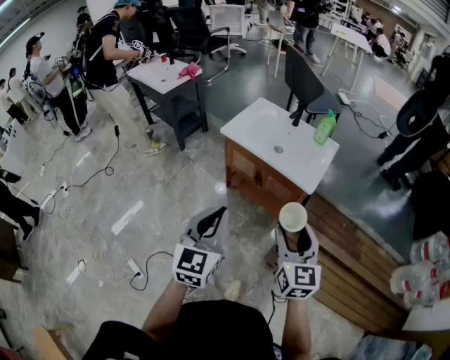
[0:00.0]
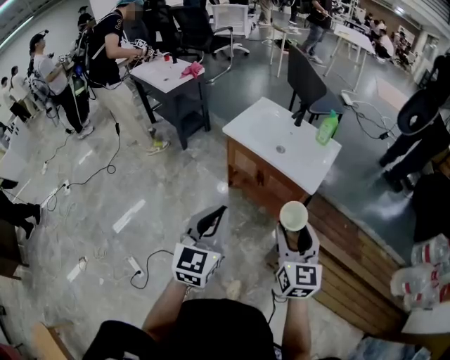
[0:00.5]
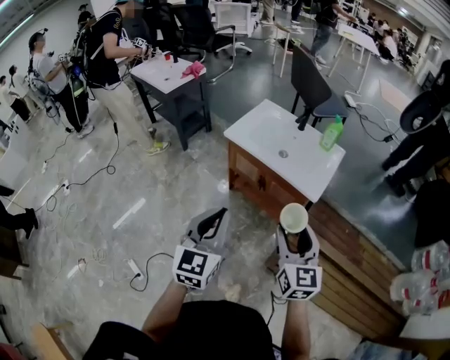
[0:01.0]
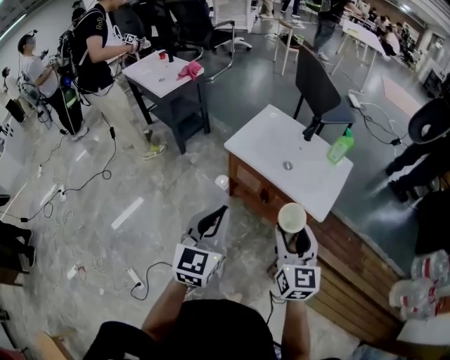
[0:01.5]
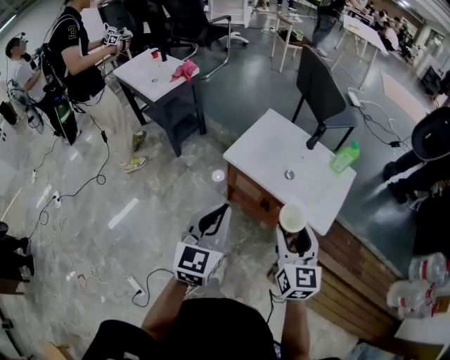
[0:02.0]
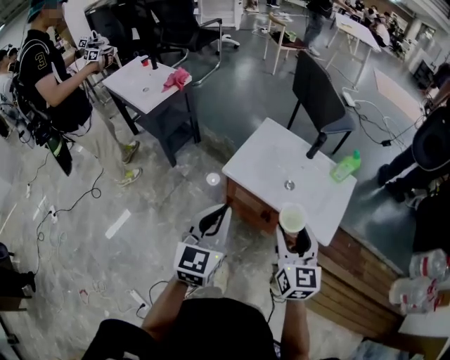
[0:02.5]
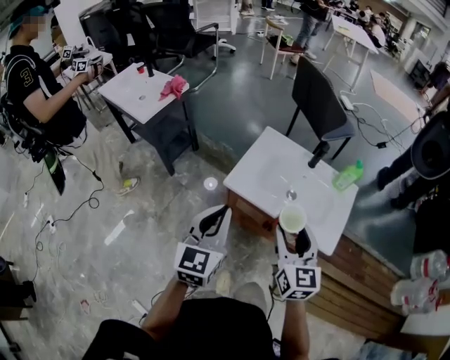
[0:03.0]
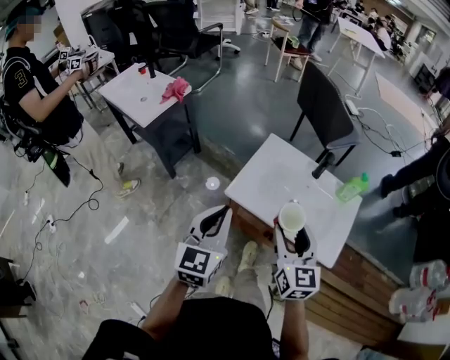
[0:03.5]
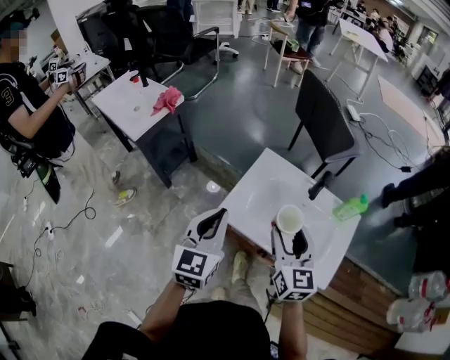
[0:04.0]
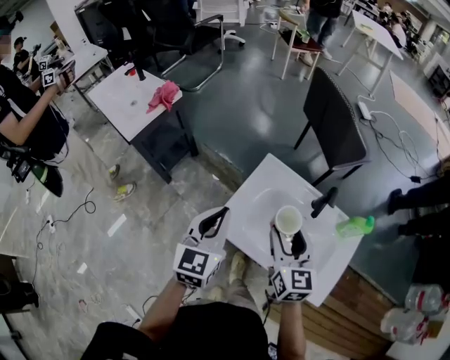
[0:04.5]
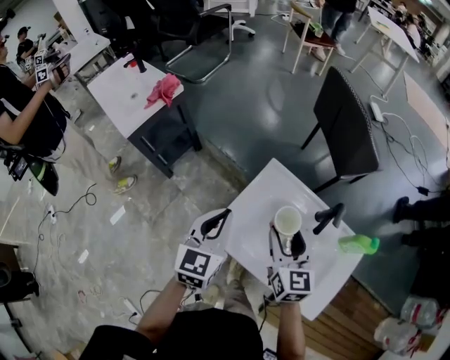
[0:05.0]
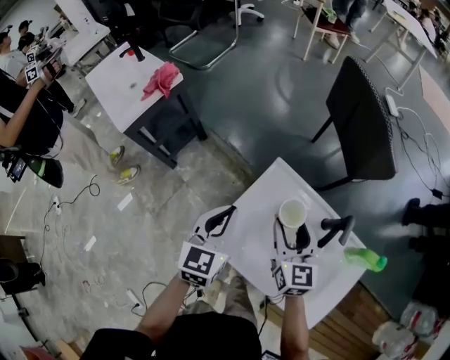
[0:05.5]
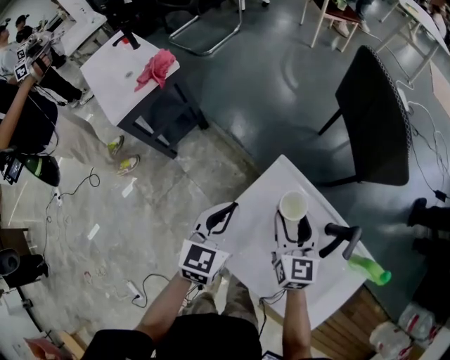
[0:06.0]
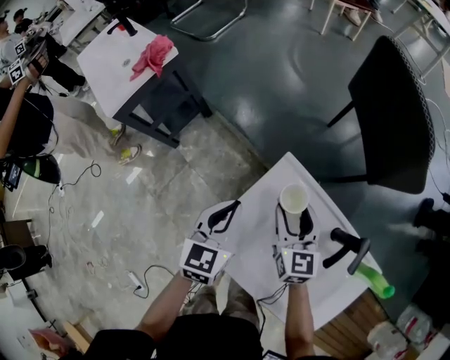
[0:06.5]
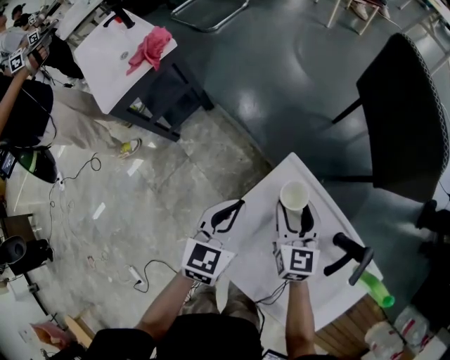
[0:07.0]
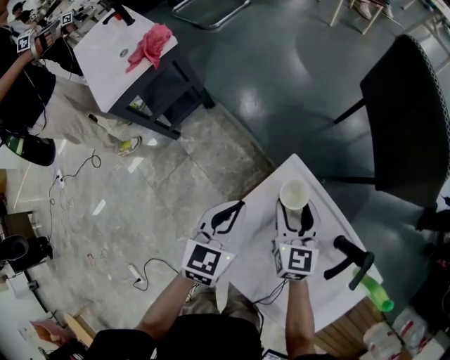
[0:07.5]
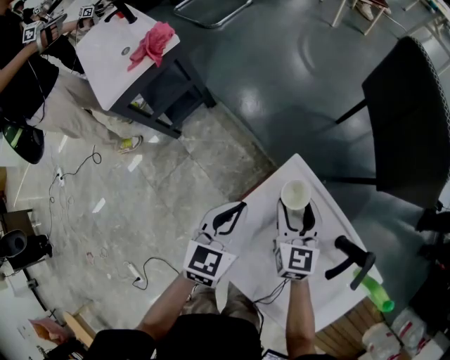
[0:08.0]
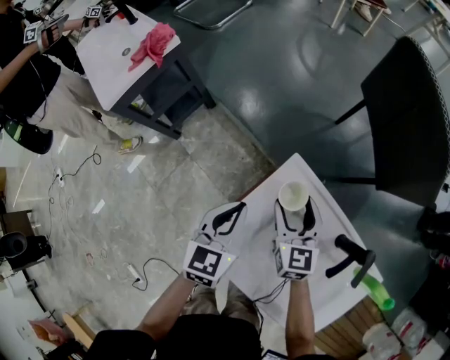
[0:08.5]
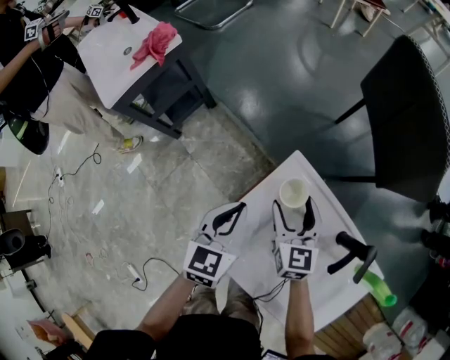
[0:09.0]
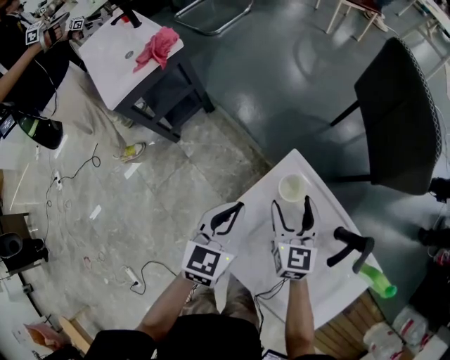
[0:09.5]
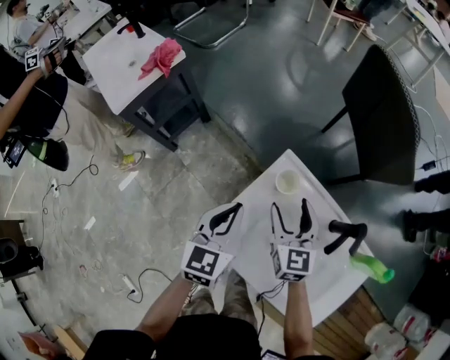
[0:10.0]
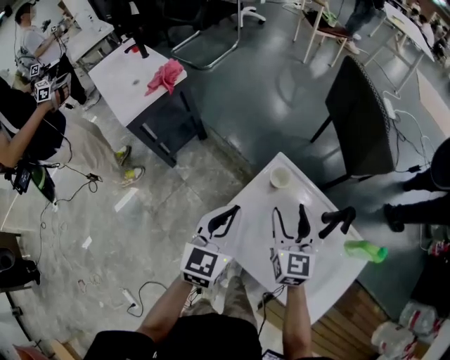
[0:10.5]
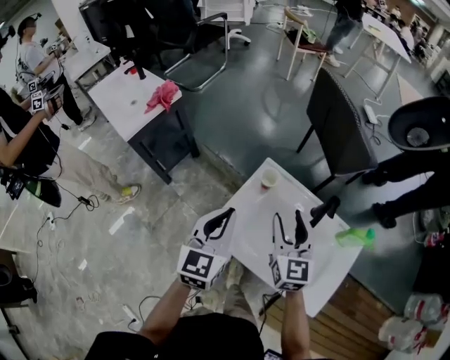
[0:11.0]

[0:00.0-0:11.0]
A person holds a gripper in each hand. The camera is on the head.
0:00.0 to 0:02.0: The two grippers go roughly 25 cm forward.
0:02.0 to 0:03.5: Both grippers travel together forward and to the left, some 20 cm.
0:03.5 to 0:05.5: The left gripper heads forward and downward, covering approximately 35 cm, while the right gripper moves forward, some 30 cm.
0:05.5 to 0:07.5: The grippers both shift downward and forward by about 15 cm.
0:07.5 to 0:09.0: There are only small adjustments of the grippers.
0:09.0 to 0:11.0: The grippers both shift upward and backward by roughly 25 cm.

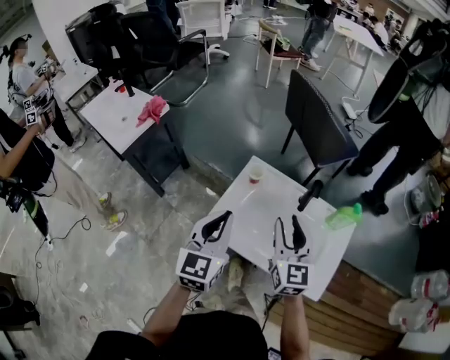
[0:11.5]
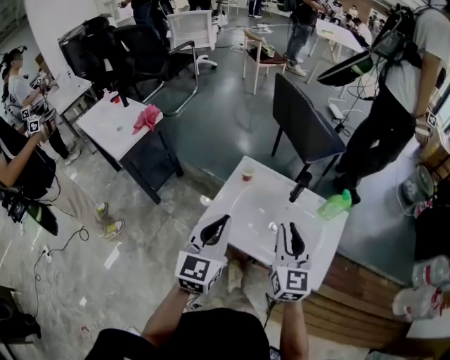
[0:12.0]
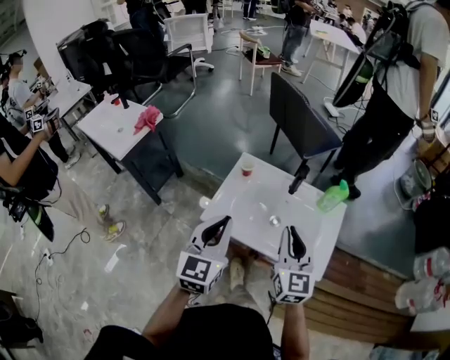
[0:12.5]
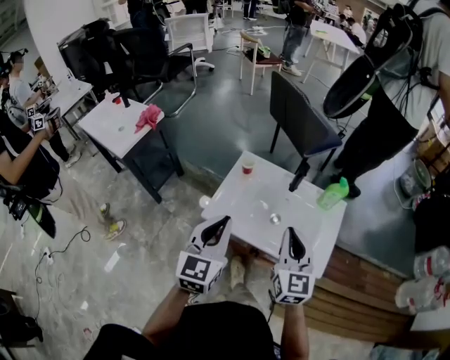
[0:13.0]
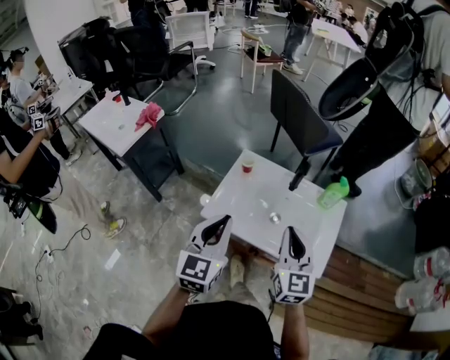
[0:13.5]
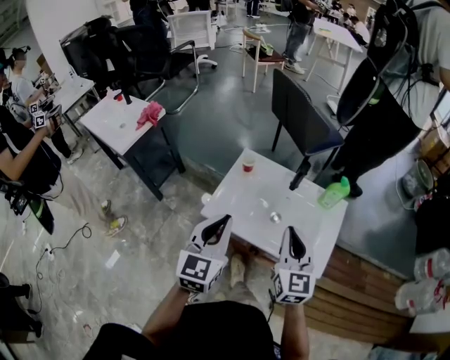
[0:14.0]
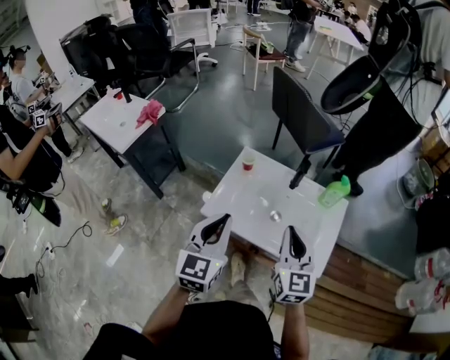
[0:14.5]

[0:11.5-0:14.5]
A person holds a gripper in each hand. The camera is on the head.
0:11.5 to 0:13.0: The grippers both shift backward by approximately 10 cm. The right gripper closes up.
0:13.0 to 0:14.5: Neither gripper changes place.

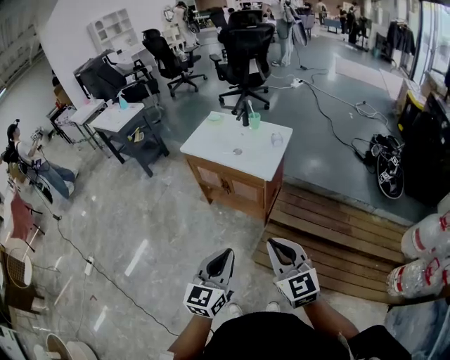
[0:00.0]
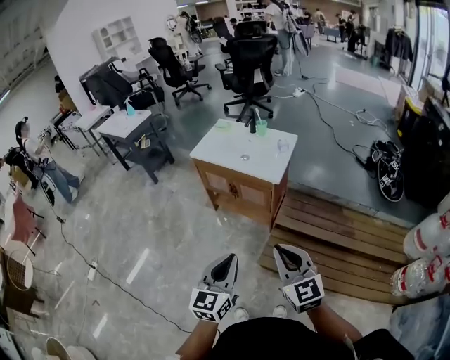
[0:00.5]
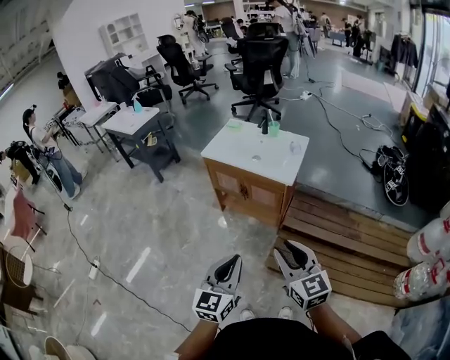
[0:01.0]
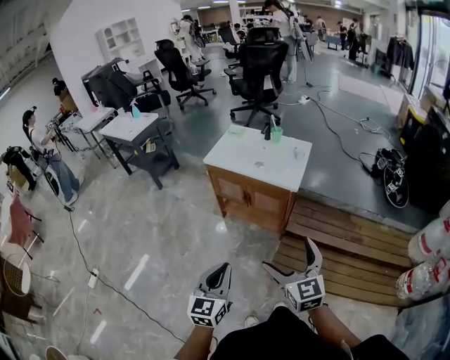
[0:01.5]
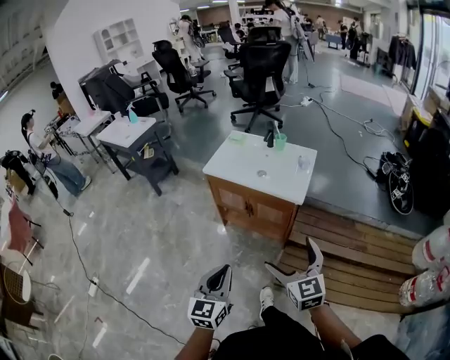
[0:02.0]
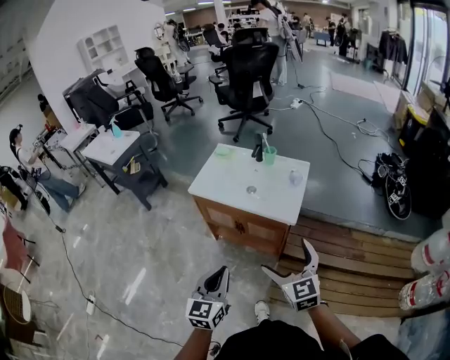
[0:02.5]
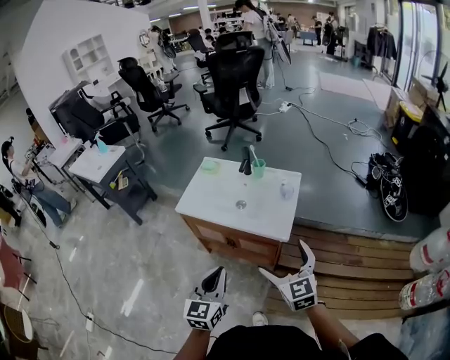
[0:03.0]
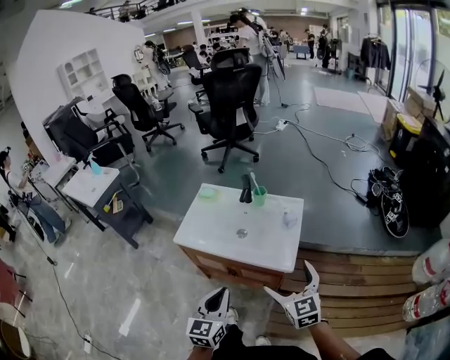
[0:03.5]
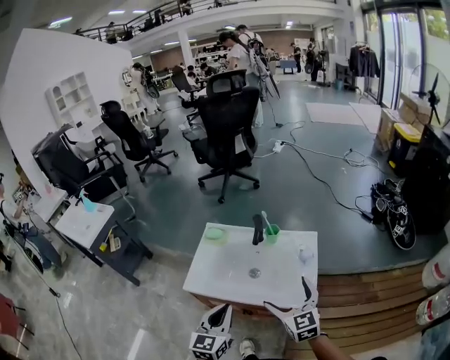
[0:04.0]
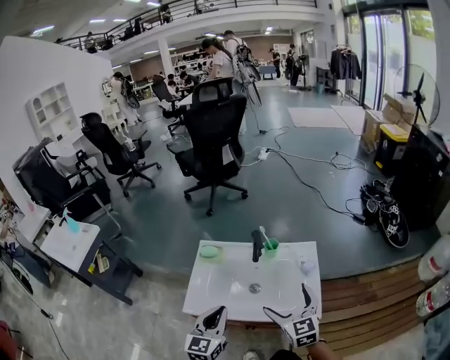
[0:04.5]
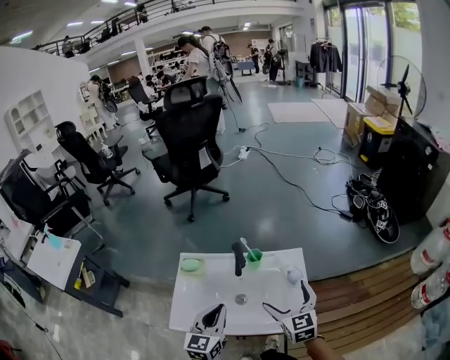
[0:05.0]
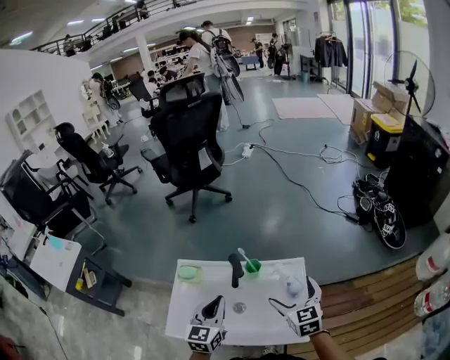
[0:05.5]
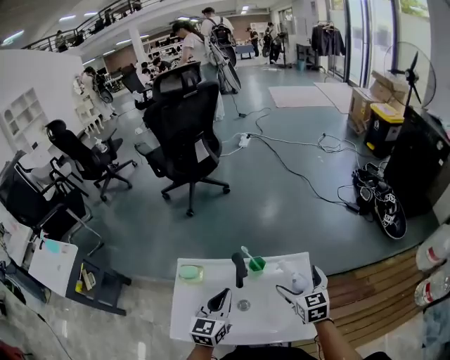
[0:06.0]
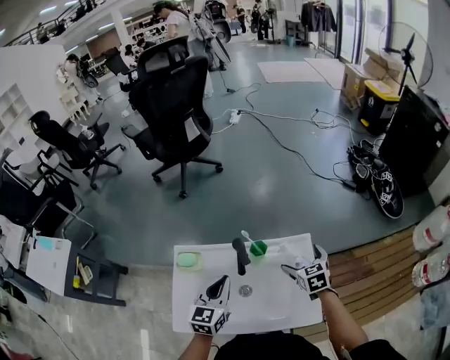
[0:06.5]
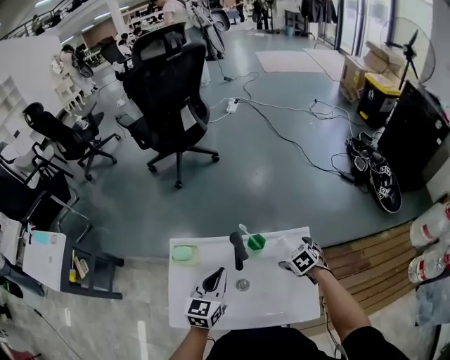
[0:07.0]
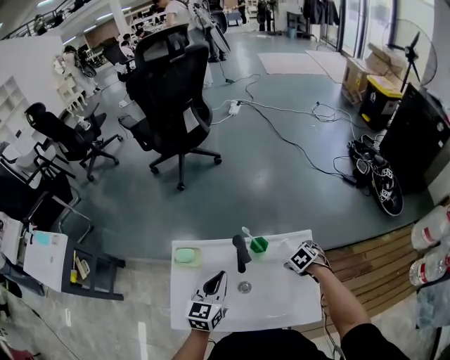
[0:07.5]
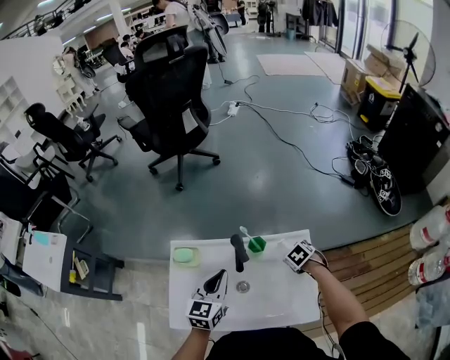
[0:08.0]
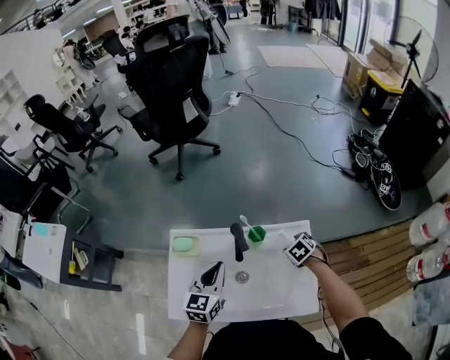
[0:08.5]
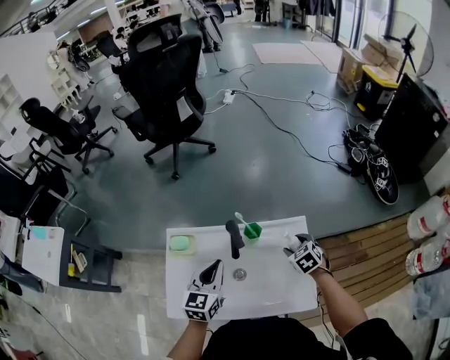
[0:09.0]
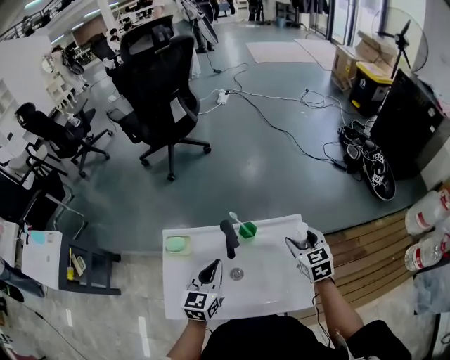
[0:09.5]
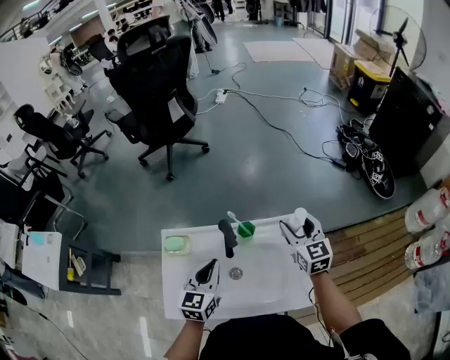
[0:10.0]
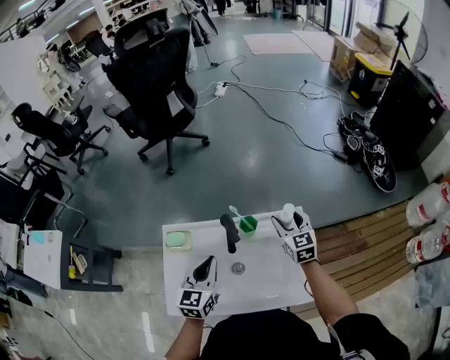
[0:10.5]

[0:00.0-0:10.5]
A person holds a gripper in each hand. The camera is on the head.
0:00.0 to 0:02.0: The grippers both shift to the left and forward by approximately 20 cm. The right gripper opens up.
0:02.0 to 0:04.0: The pair of grippers is taken forward, some 50 cm.
0:04.0 to 0:06.5: The right gripper is displaced forward and downward by roughly 40 cm, and changes its angle by approximately 30 degrees; the left gripper is displaced forward by about 40 cm.
0:06.5 to 0:08.5: The right gripper goes roughly 10 cm downward, swivels roughly 40 degrees, and closes.
0:08.5 to 0:10.5: The right gripper heads upward, covering some 15 cm, and angles its fingers upward, by roughly 50 degrees.

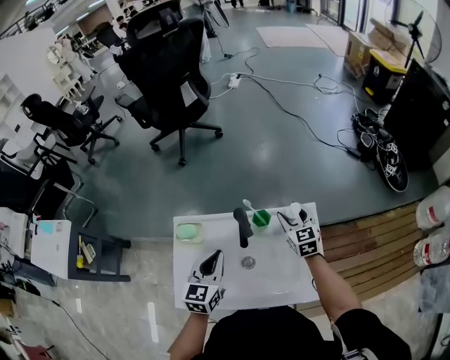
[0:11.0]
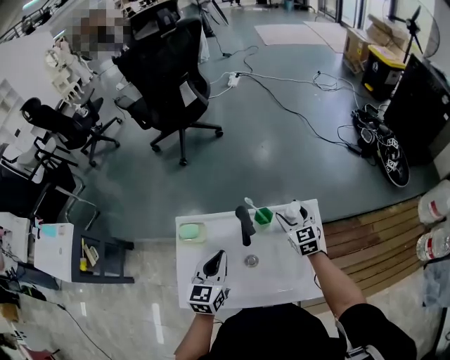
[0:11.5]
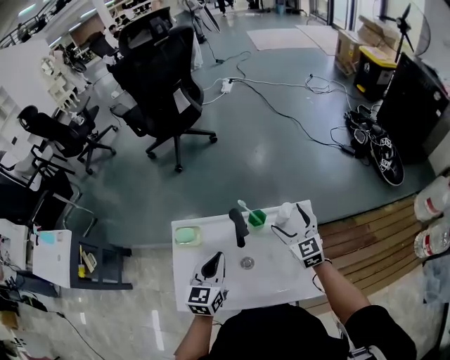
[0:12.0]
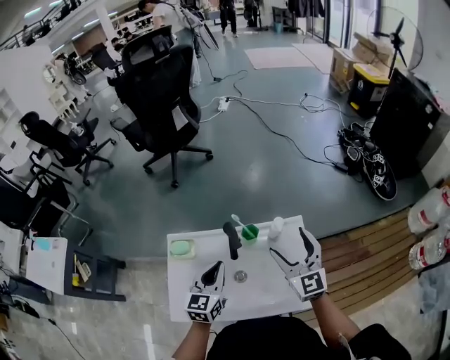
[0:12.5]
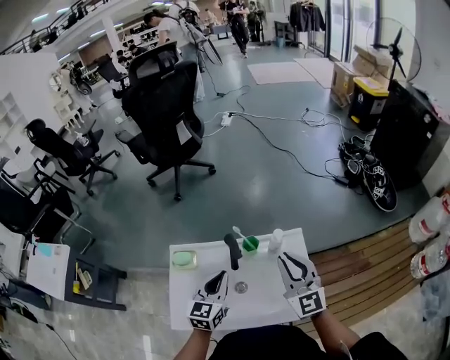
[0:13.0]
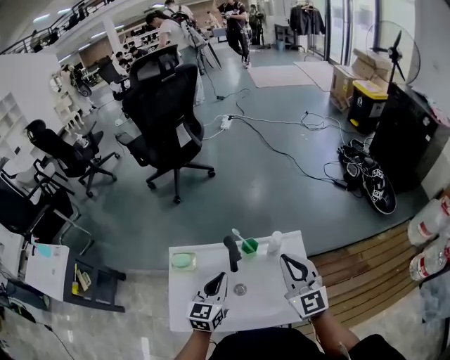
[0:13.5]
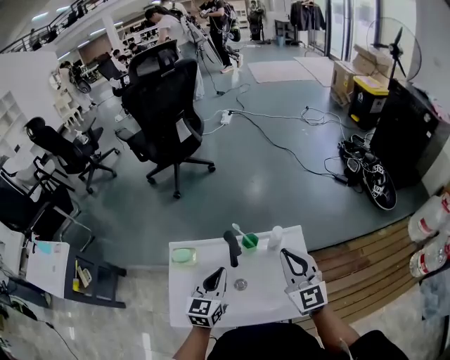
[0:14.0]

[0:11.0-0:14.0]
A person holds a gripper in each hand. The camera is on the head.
0:11.0 to 0:12.5: The right gripper moves upward and backward, some 20 cm, and rotates about 30 degrees.
0:12.5 to 0:14.0: The right gripper moves approximately 5 cm, and closes its fingers.
